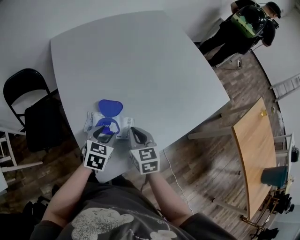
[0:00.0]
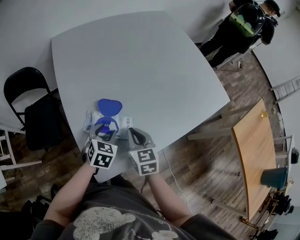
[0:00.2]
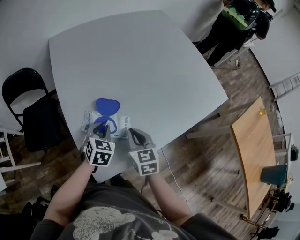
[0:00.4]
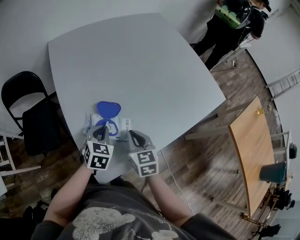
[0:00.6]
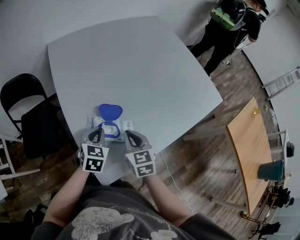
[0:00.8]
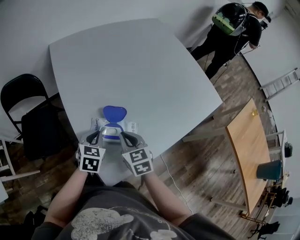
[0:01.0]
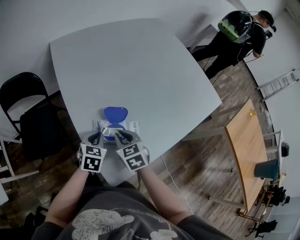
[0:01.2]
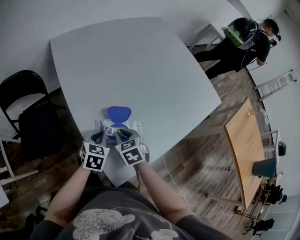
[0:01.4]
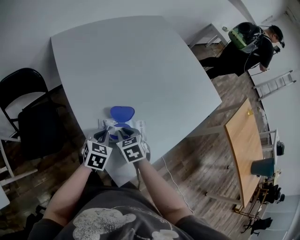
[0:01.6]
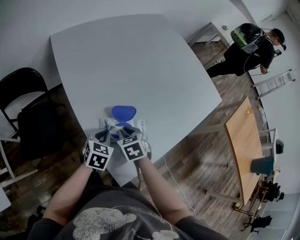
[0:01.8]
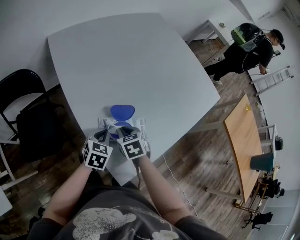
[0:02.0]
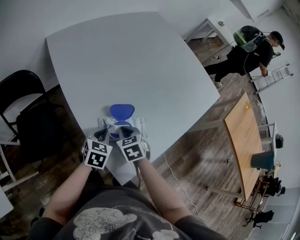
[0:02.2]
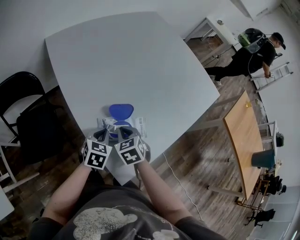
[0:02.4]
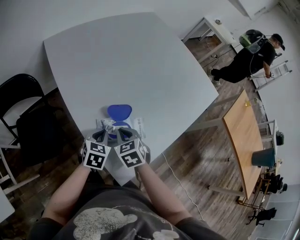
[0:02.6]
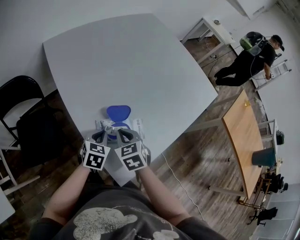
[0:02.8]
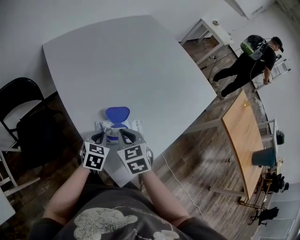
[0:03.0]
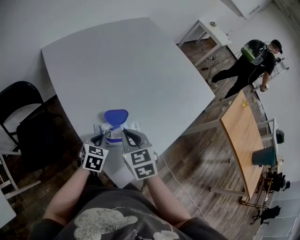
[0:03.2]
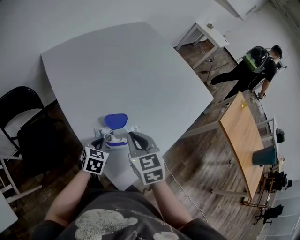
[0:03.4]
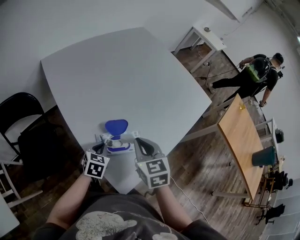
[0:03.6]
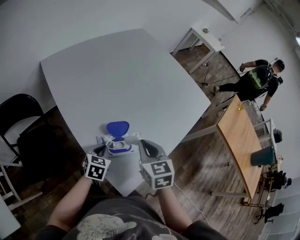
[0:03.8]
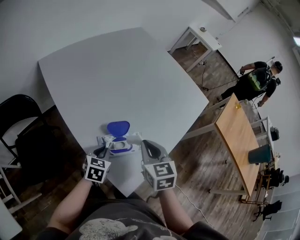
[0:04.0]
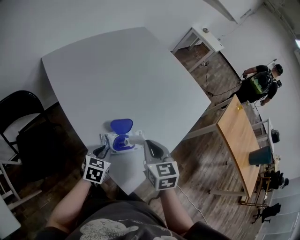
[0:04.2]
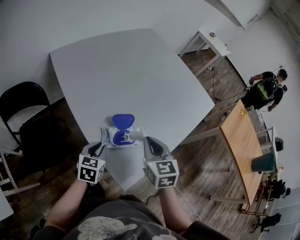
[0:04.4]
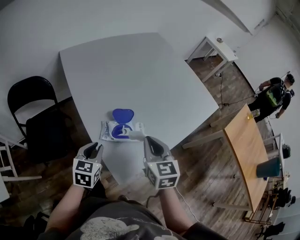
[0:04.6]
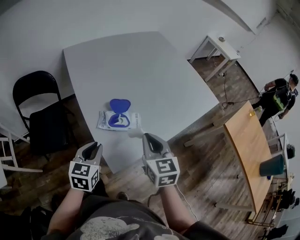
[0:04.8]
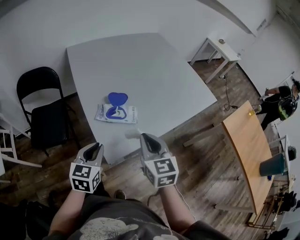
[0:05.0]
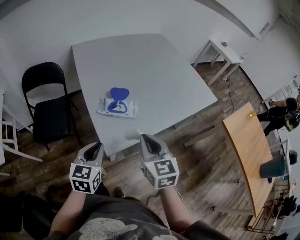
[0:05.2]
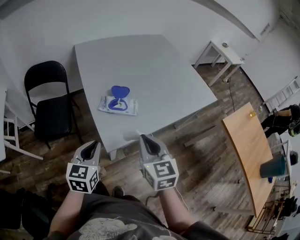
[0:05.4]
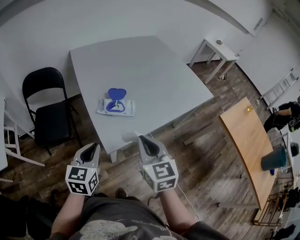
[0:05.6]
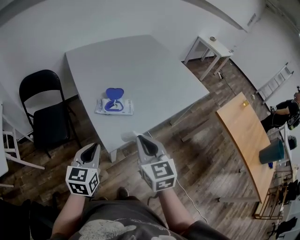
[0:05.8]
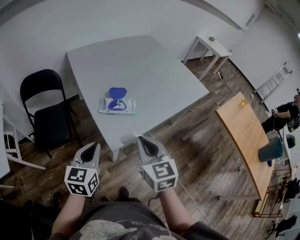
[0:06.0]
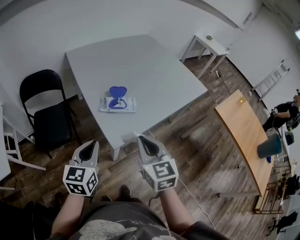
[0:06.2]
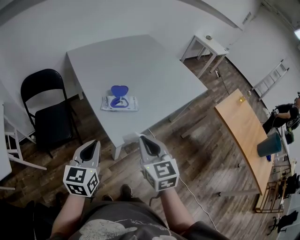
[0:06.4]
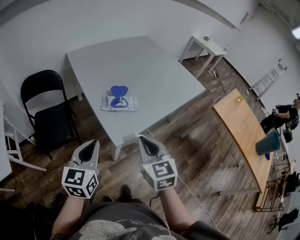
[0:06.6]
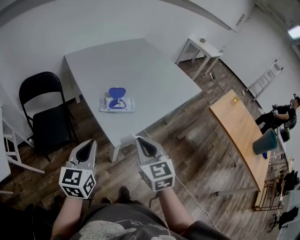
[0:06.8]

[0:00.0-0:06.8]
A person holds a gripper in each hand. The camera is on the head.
0:00.0 to 0:01.4: The two grippers go approximately 10 cm to the left. The left gripper closes; the right gripper swivels approximately 20 degrees.
0:01.4 to 0:02.8: The grippers make only small movements.
0:02.8 to 0:04.0: The right gripper goes about 15 cm upward and to the right, and changes its angle by some 20 degrees.
0:04.0 to 0:05.4: The right gripper shifts by some 20 cm, and changes its angle by some 20 degrees, while the left gripper ends up roughly 30 cm from where it was, and rotates some 30 degrees.
0:05.4 to 0:06.8: The right gripper is displaced backward and to the left by roughly 10 cm. Meanwhile the left gripper shifts some 10 cm upward and to the left.

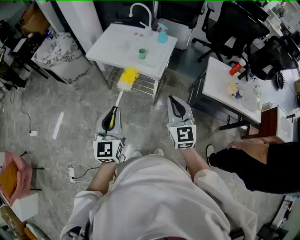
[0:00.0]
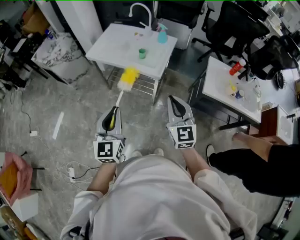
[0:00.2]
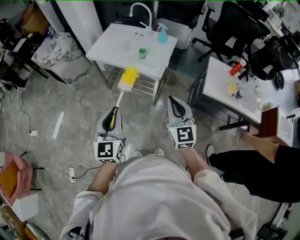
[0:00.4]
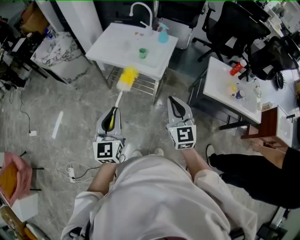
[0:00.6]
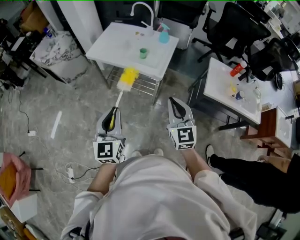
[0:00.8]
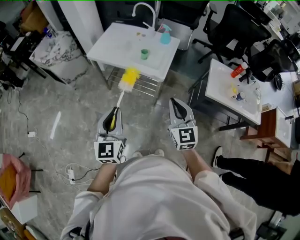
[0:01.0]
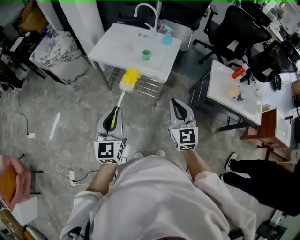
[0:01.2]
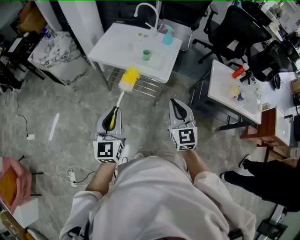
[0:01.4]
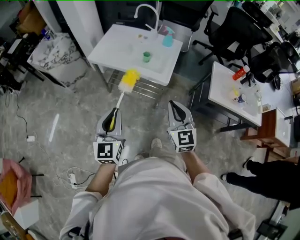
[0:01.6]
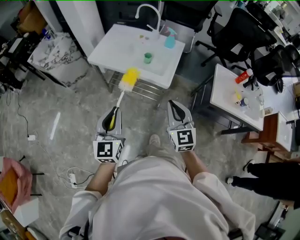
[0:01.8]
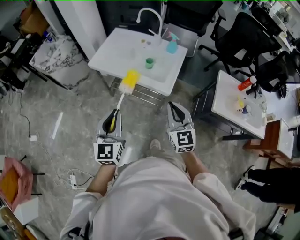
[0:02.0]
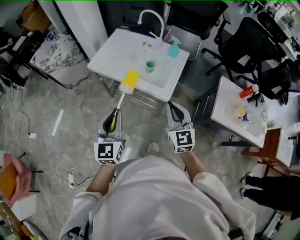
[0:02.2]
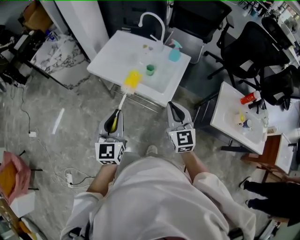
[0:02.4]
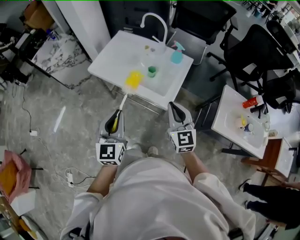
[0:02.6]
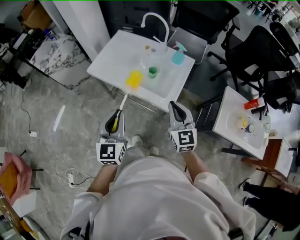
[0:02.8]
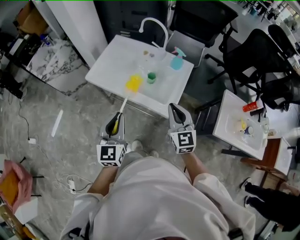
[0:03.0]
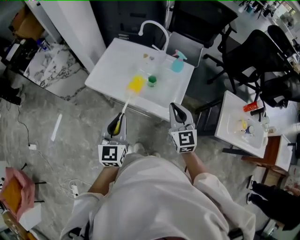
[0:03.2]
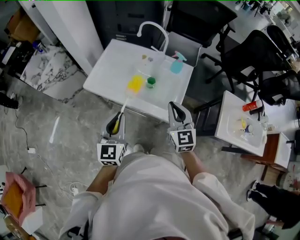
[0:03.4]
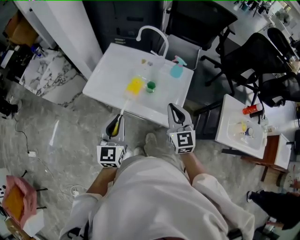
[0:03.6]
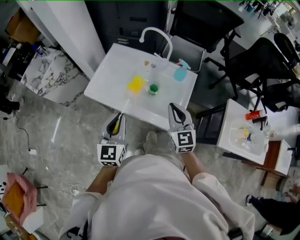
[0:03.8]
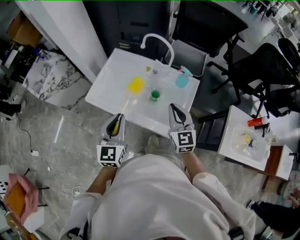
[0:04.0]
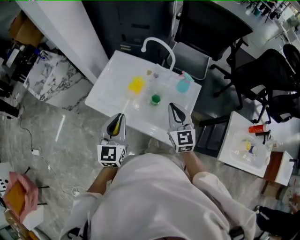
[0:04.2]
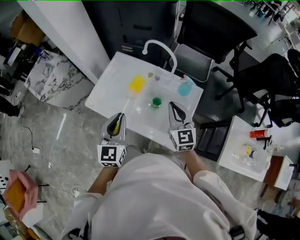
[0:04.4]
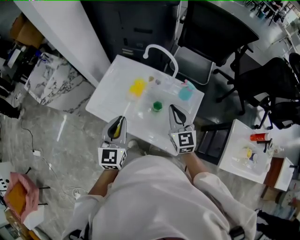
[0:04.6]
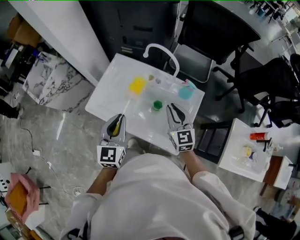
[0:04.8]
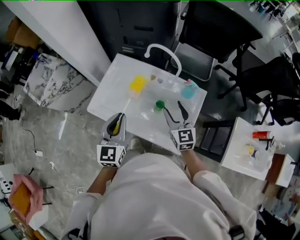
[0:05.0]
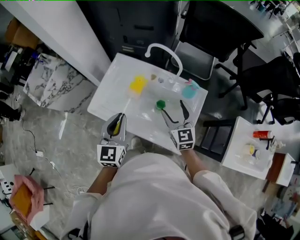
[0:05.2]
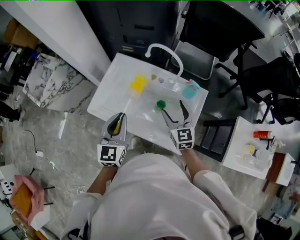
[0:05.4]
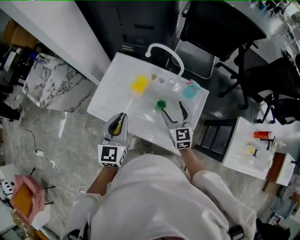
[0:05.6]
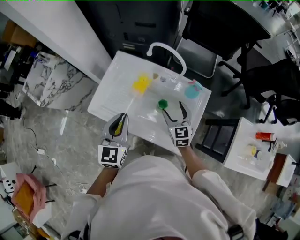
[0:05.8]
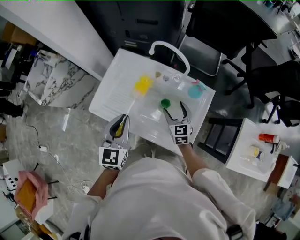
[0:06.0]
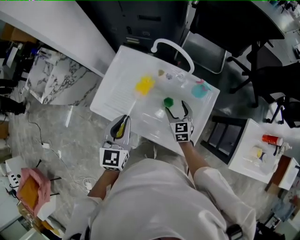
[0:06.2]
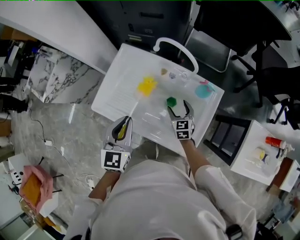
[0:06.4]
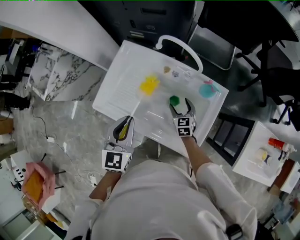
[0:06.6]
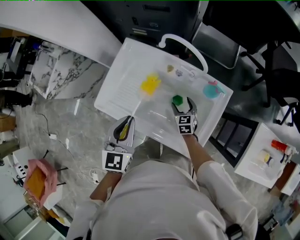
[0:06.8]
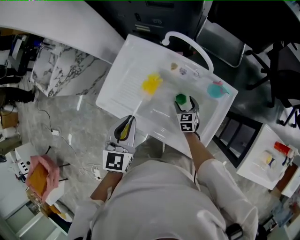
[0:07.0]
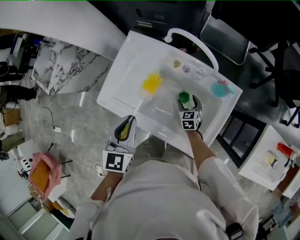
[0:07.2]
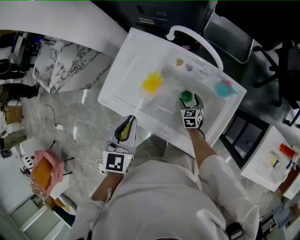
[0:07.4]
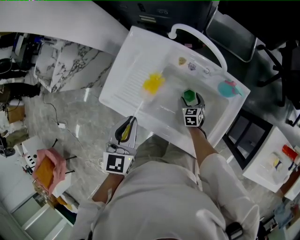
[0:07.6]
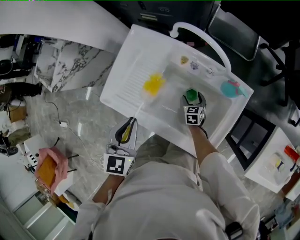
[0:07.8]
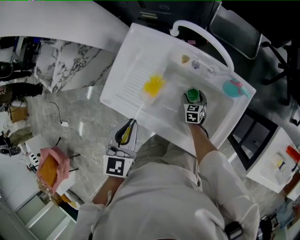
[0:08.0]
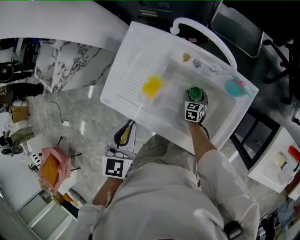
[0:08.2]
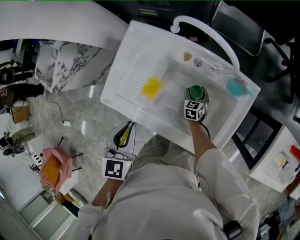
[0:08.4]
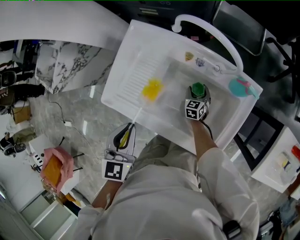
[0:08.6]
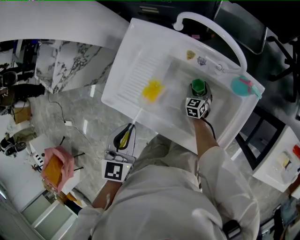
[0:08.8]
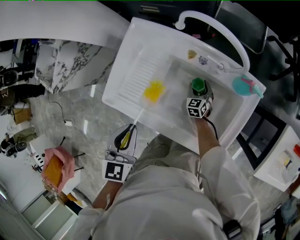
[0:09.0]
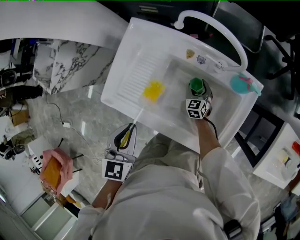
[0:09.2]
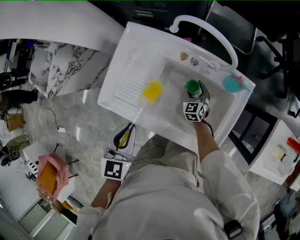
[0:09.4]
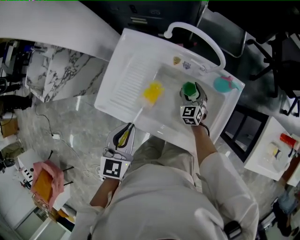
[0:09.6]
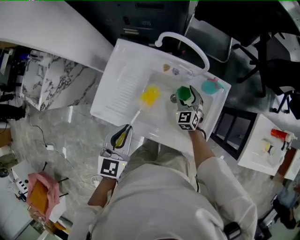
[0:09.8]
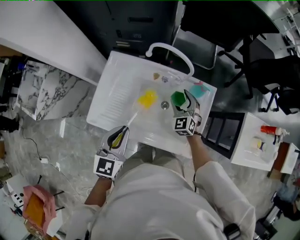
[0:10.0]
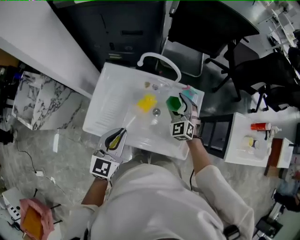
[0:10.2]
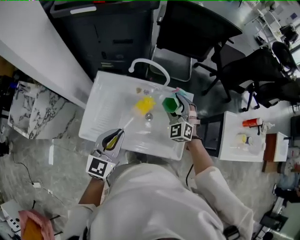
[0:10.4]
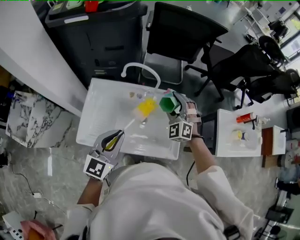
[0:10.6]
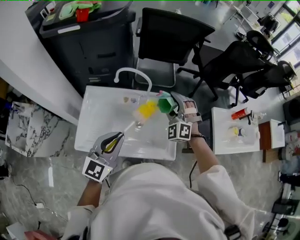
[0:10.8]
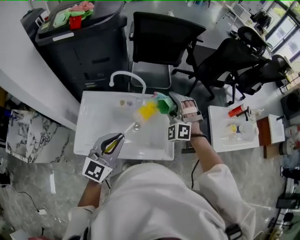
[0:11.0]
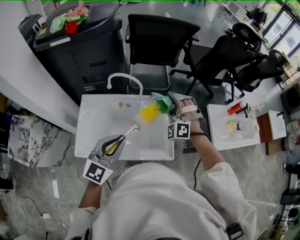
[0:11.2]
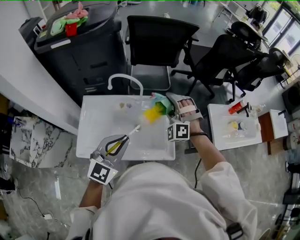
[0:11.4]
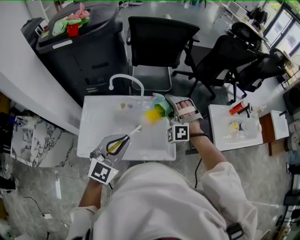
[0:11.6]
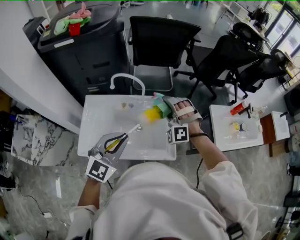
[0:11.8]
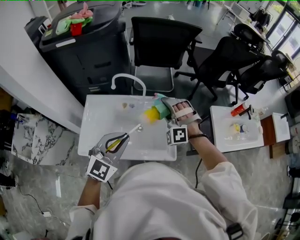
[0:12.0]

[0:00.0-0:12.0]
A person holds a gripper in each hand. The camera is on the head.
0:00.0 to 0:01.6: The right gripper is displaced to the left by roughly 5 cm, while the left gripper moves to the left and forward, roughly 10 cm.
0:01.6 to 0:03.0: The two grippers go some 25 cm forward.
0:03.0 to 0:04.4: The grippers both shift forward by roughly 25 cm.
0:04.4 to 0:06.0: The left gripper shifts about 5 cm forward. The right gripper shifts approximately 20 cm downward and forward, and opens up.
0:06.0 to 0:07.6: The right gripper shifts roughly 25 cm downward, and turns by roughly 20 degrees, while the left gripper moves downward, about 5 cm.
0:07.6 to 0:09.0: The right gripper moves about 5 cm. The left gripper shifts by about 5 cm.
0:09.0 to 0:10.4: The left gripper moves upward, roughly 15 cm, and rotates roughly 40 degrees; the right gripper moves upward, about 40 cm, and rotates approximately 40 degrees.
0:10.4 to 0:12.0: The left gripper travels to the right and upward by approximately 15 cm, and swivels about 30 degrees, while the right gripper moves upward and to the right, approximately 10 cm, and rotates some 30 degrees.

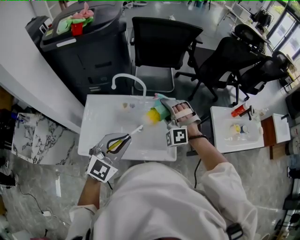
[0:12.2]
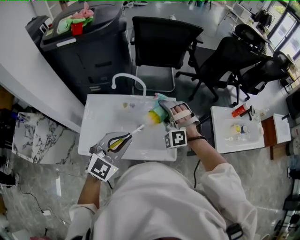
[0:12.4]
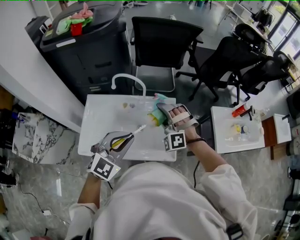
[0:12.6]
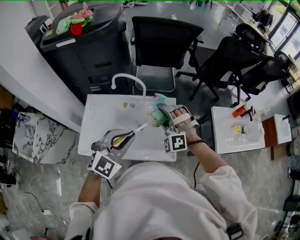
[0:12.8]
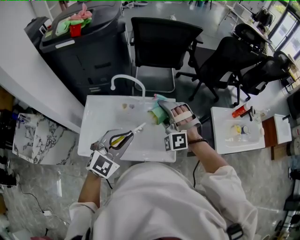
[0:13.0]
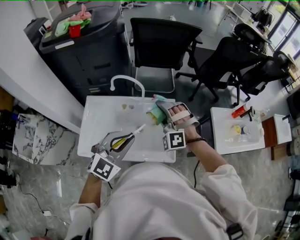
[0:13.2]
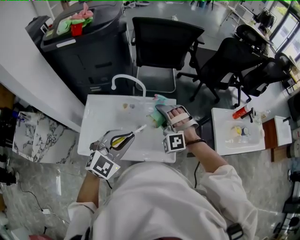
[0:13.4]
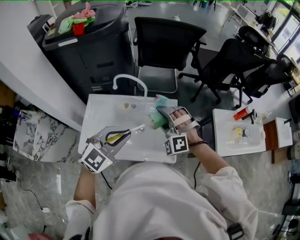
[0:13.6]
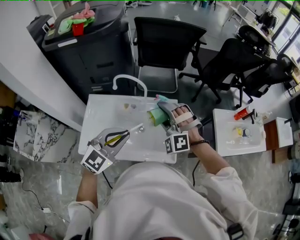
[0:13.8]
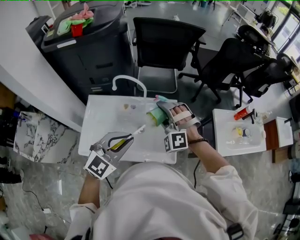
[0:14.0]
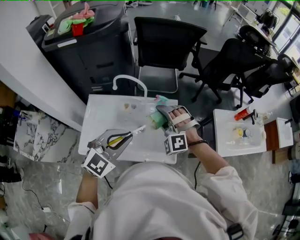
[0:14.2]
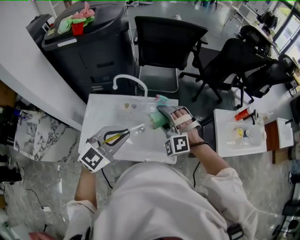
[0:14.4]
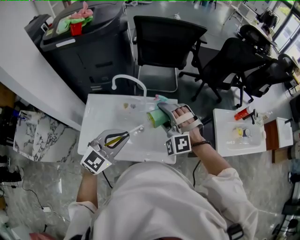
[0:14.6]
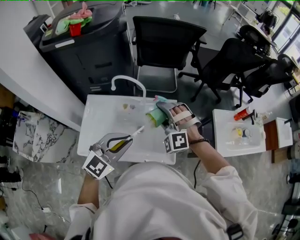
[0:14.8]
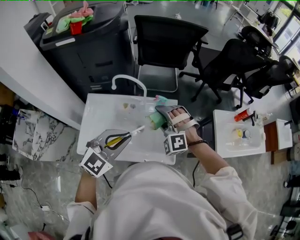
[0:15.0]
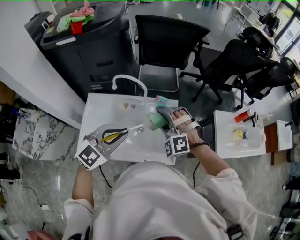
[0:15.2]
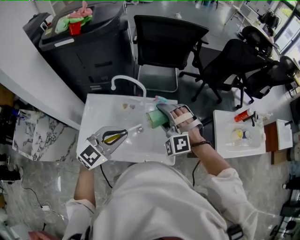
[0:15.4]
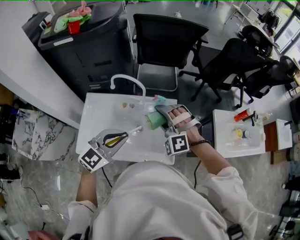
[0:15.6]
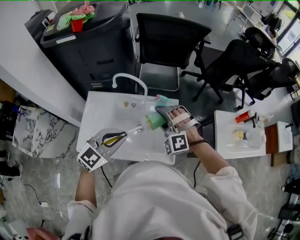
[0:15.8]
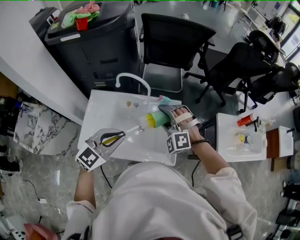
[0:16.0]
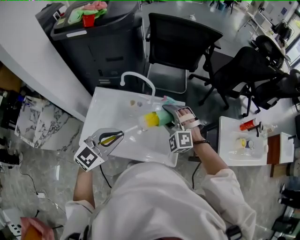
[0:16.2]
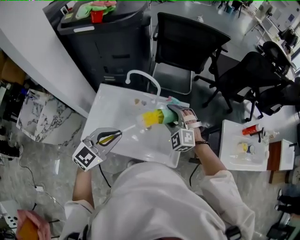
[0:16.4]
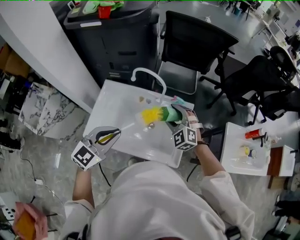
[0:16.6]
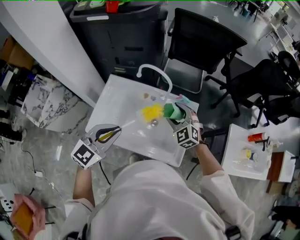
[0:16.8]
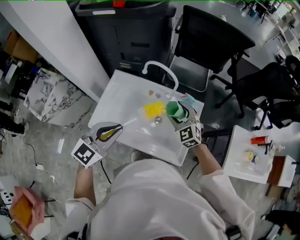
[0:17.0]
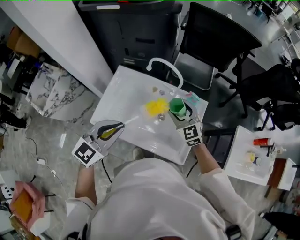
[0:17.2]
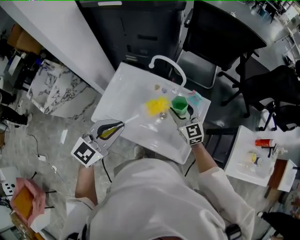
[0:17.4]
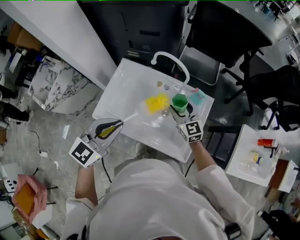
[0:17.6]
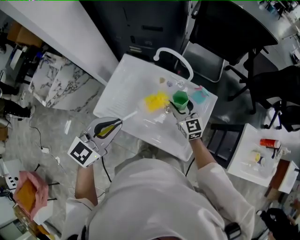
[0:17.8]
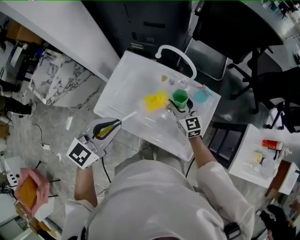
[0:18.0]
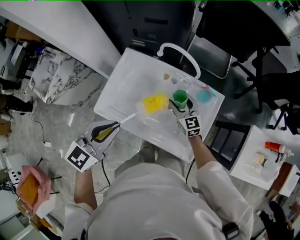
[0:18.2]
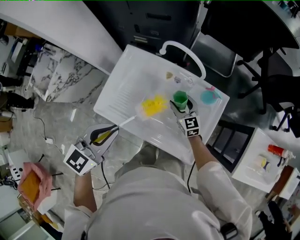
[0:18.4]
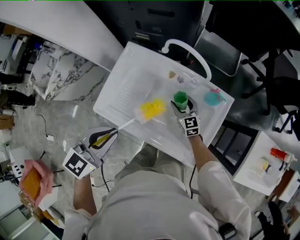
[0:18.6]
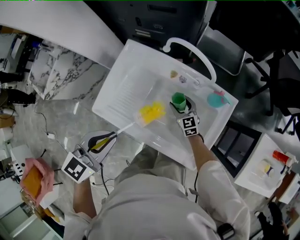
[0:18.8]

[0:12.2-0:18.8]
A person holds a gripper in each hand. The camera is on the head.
0:12.2 to 0:15.4: There are only small adjustments of the grippers.
0:15.4 to 0:17.2: The right gripper heads downward and to the left, covering roughly 10 cm, and rotates around the line of its fingers by some 50 degrees, clockwise from behind, while the left gripper moves to the left, about 10 cm, and turns by about 20 degrees.
0:17.2 to 0:18.8: The left gripper shifts about 10 cm downward. The right gripper heads downward, covering about 25 cm, and rotates some 20 degrees.
